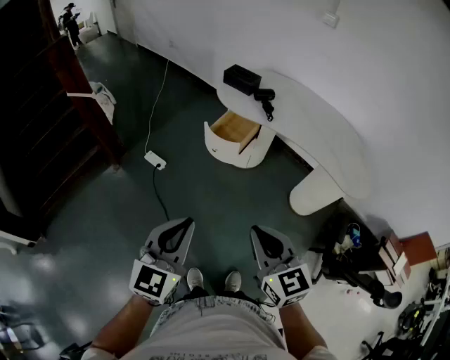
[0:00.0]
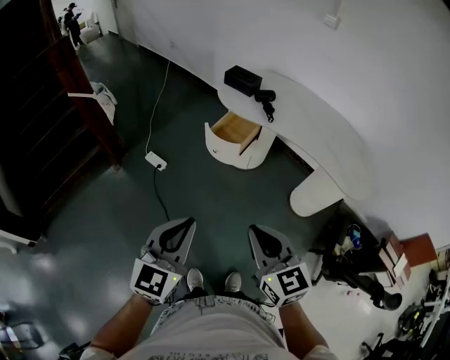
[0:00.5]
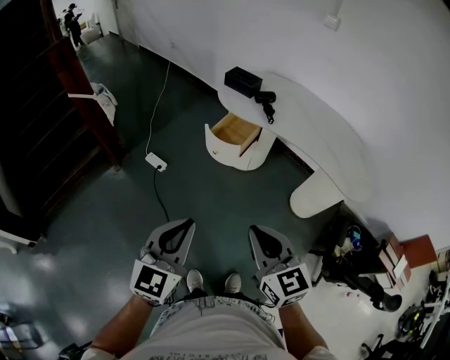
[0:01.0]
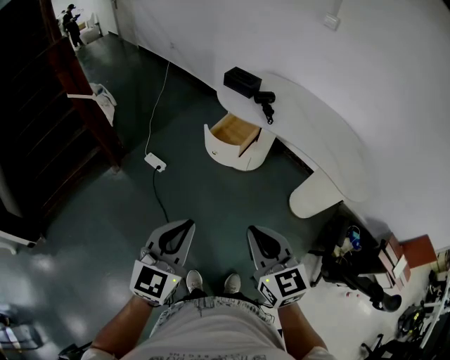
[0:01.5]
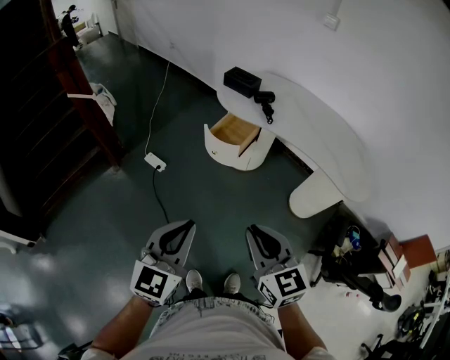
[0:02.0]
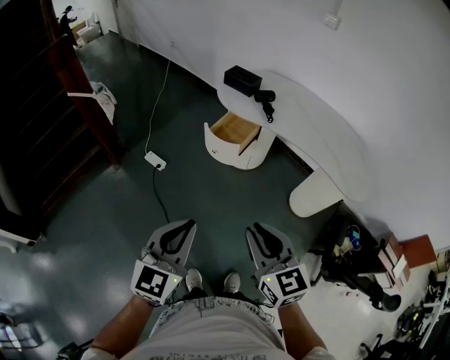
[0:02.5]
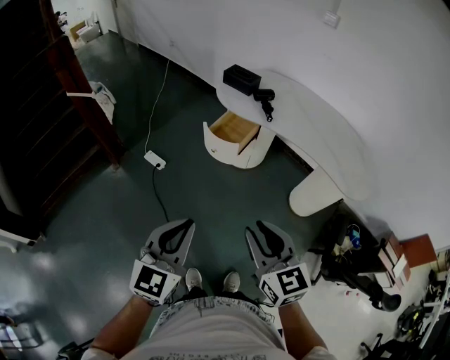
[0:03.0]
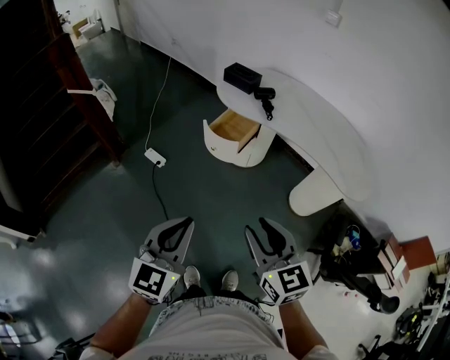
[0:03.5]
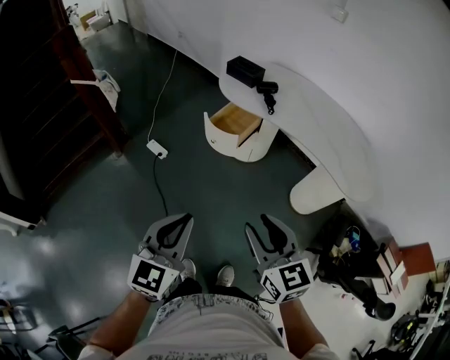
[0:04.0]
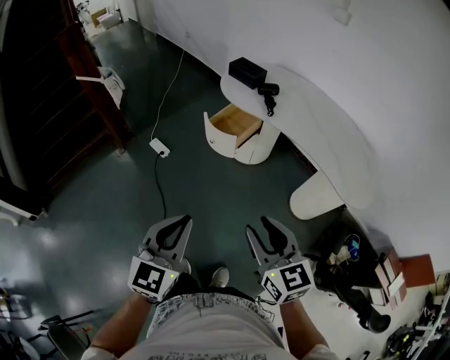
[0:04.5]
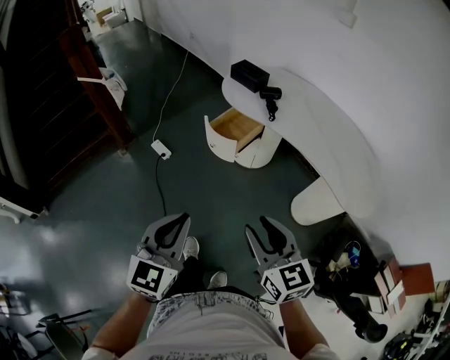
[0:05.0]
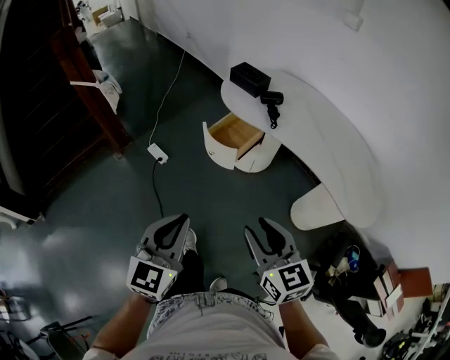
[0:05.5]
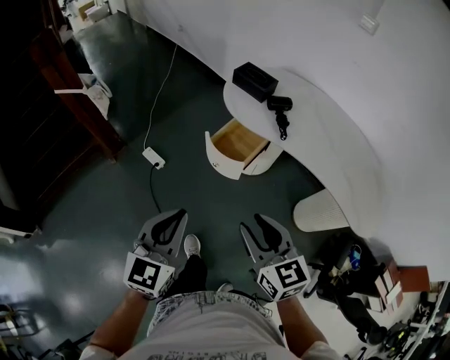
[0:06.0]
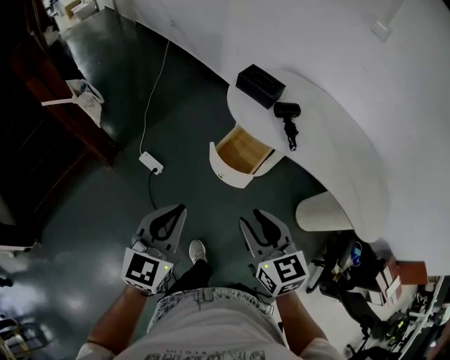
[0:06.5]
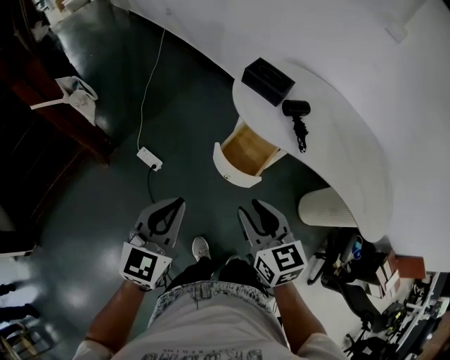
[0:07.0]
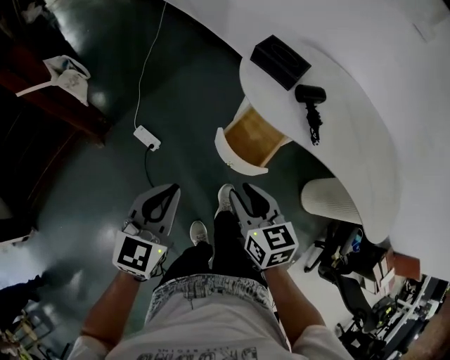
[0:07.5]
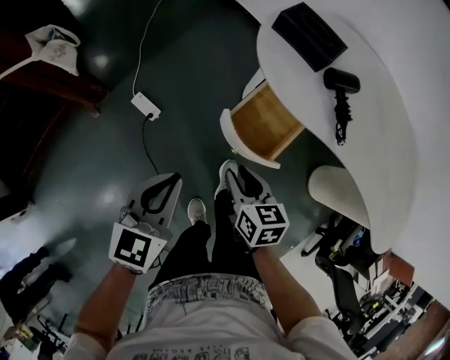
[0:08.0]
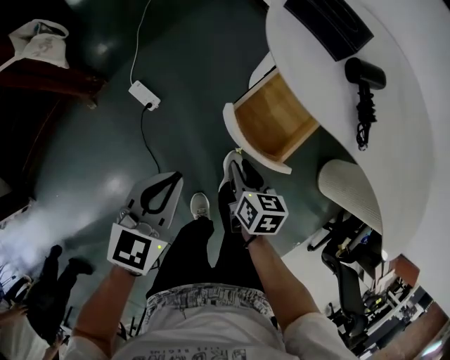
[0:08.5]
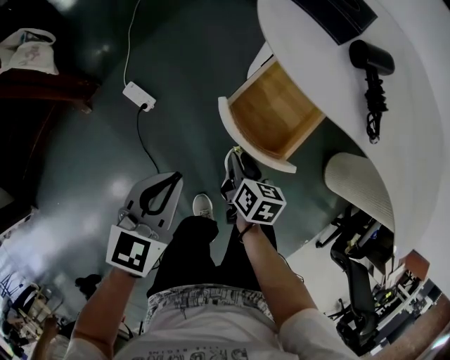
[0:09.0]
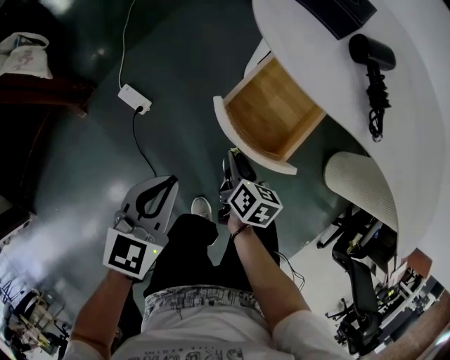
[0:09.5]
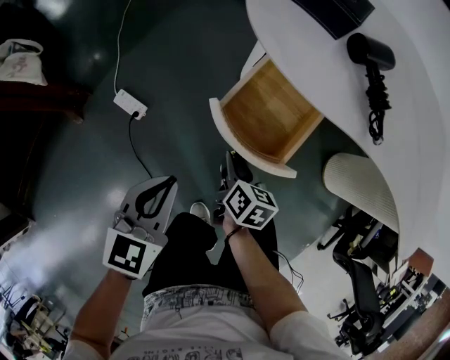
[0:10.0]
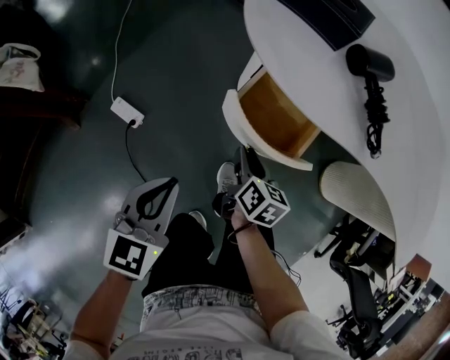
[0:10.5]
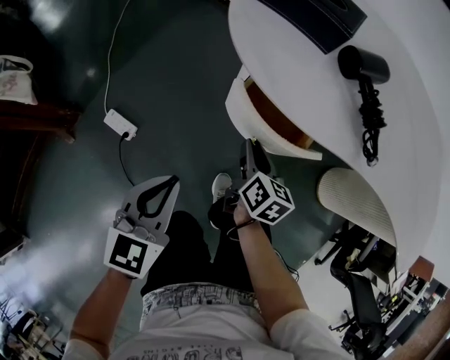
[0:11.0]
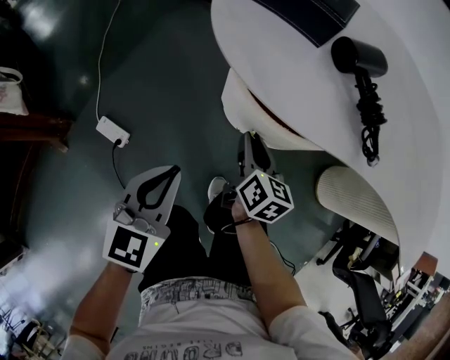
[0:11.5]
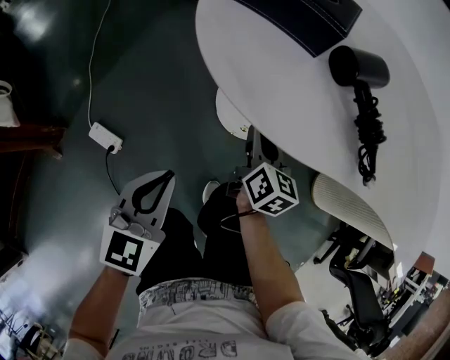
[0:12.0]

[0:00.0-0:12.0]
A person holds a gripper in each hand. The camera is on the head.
0:00.0 to 0:02.0: Both grippers stay about where they are.
0:02.0 to 0:04.0: The right gripper heads to the right, covering roughly 5 cm, and opens up.
0:04.0 to 0:06.0: The two grippers go approximately 20 cm forward.
0:06.0 to 0:08.0: The grippers both shift forward and downward by approximately 35 cm. The right gripper changes its angle by roughly 30 degrees.
0:08.0 to 0:10.0: Both grippers travel together downward, about 15 cm. The right gripper turns by approximately 30 degrees.
0:10.0 to 0:12.0: The right gripper shifts approximately 25 cm forward and to the right, and changes its angle by roughly 30 degrees; the left gripper moves forward and downward, about 15 cm.

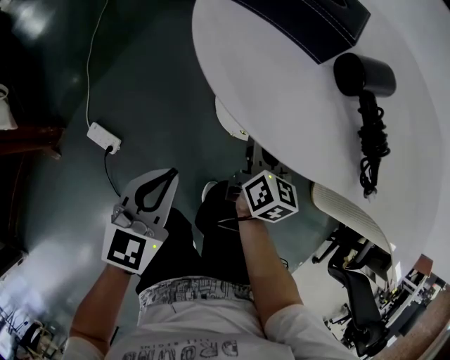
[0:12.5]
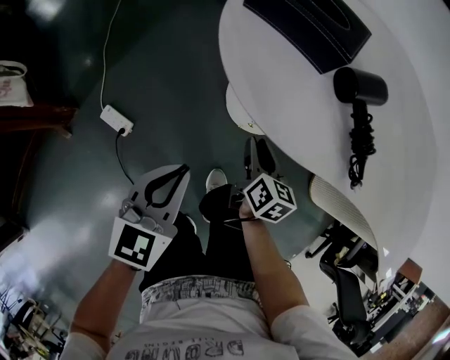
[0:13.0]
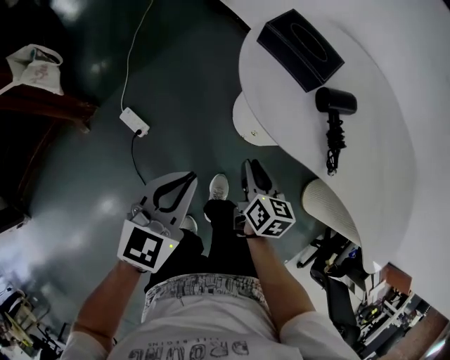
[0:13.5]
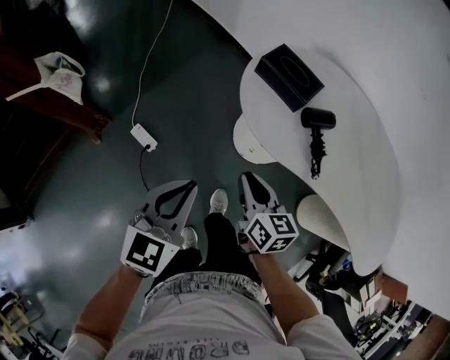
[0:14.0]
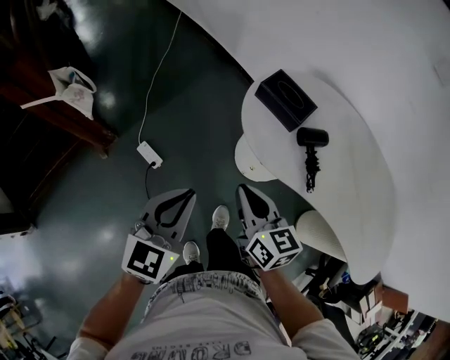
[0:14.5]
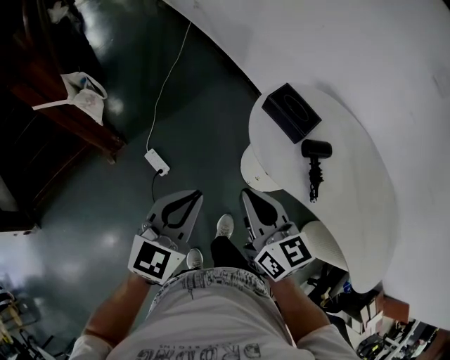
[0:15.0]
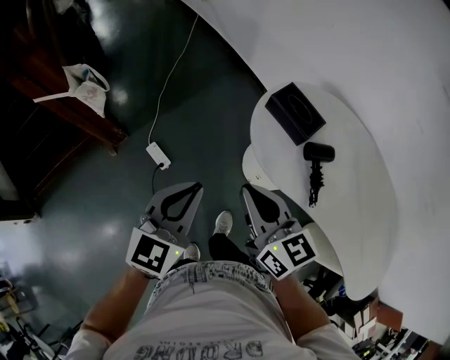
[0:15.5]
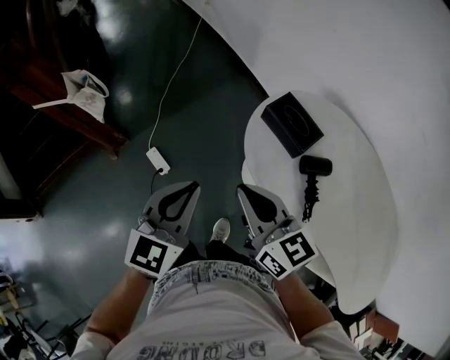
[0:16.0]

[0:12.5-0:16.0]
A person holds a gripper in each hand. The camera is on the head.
0:12.5 to 0:14.5: The left gripper heads upward, covering some 35 cm, while the right gripper travels upward and backward by about 40 cm, changes its angle by some 40 degrees, and closes its fingers.
0:14.5 to 0:16.0: The left gripper travels forward by approximately 10 cm, while the right gripper moves upward and forward, some 10 cm.

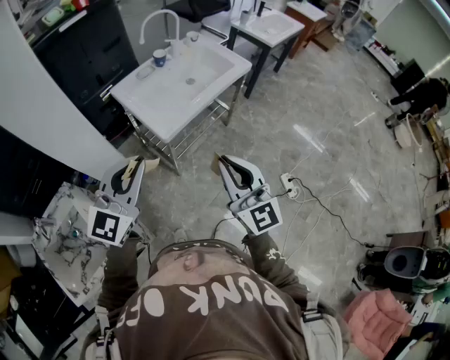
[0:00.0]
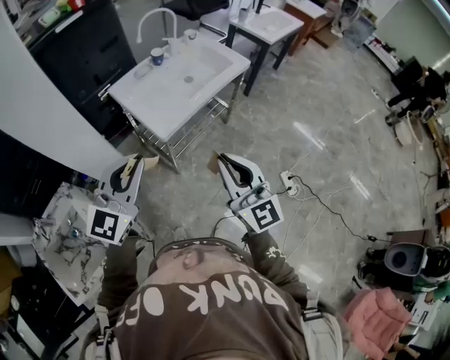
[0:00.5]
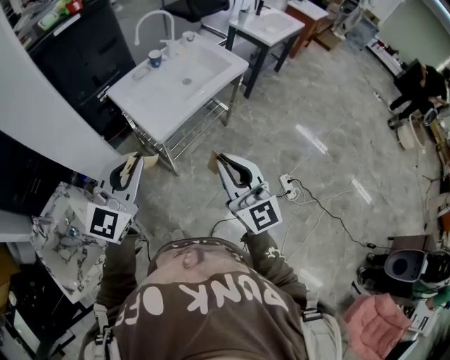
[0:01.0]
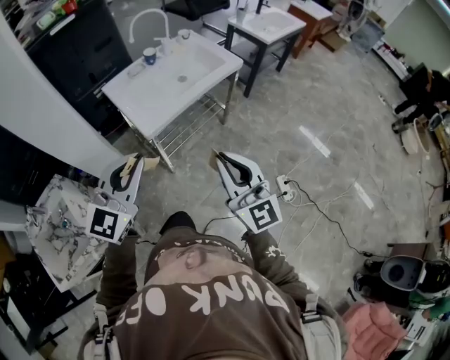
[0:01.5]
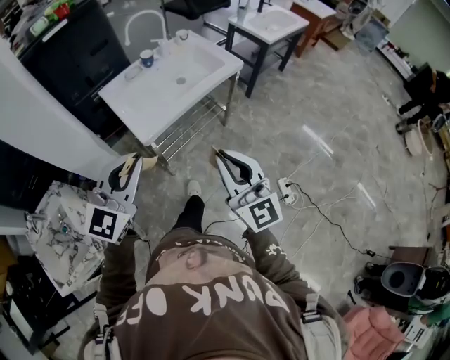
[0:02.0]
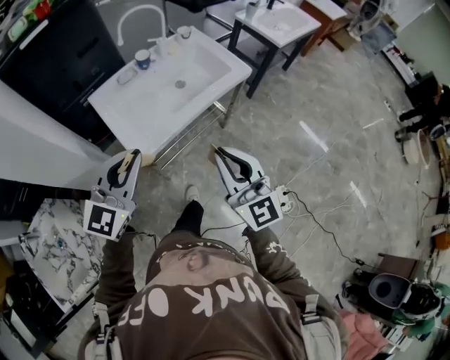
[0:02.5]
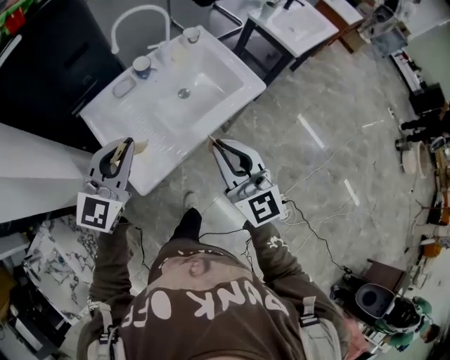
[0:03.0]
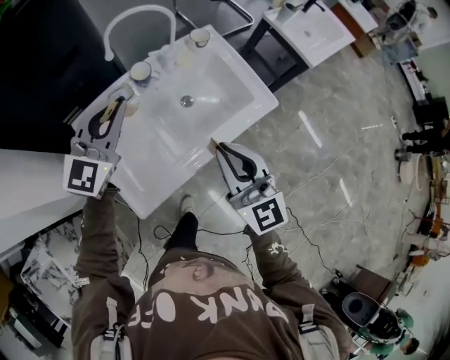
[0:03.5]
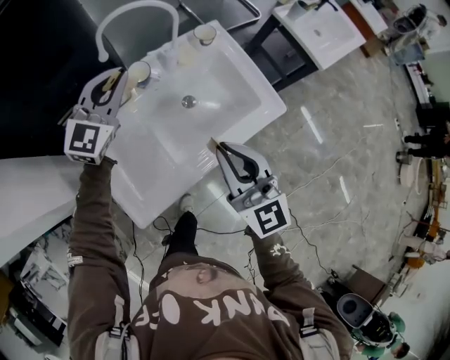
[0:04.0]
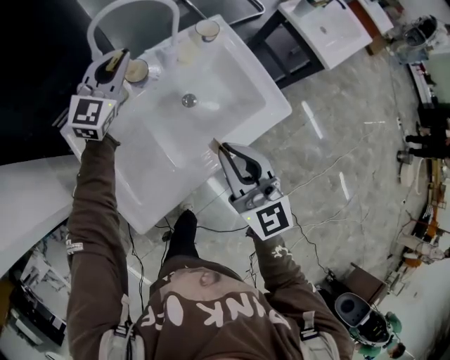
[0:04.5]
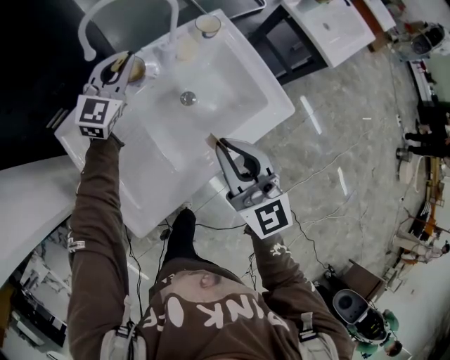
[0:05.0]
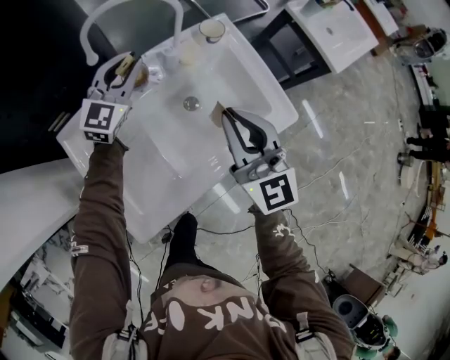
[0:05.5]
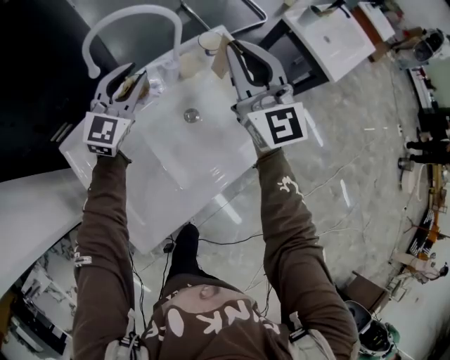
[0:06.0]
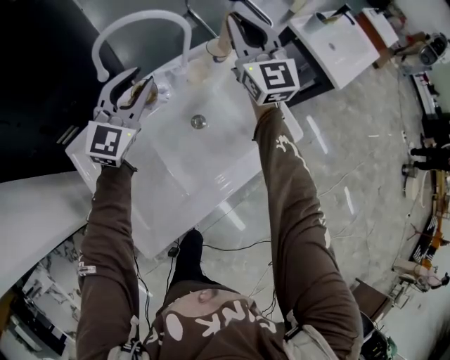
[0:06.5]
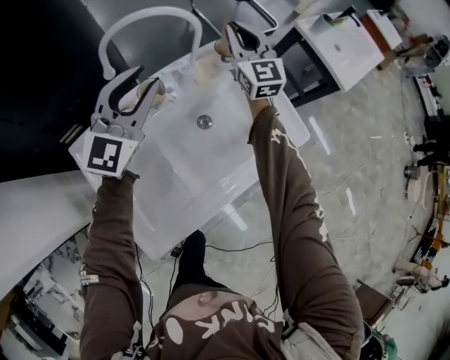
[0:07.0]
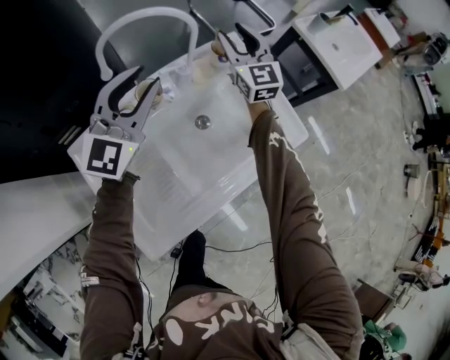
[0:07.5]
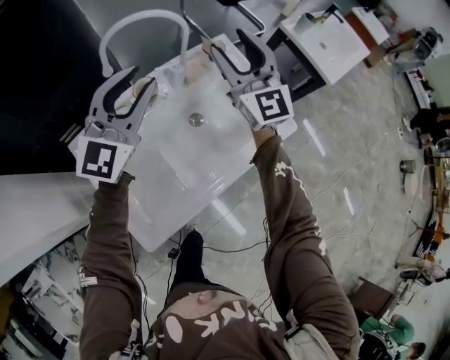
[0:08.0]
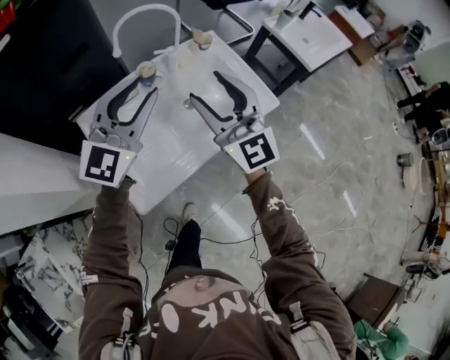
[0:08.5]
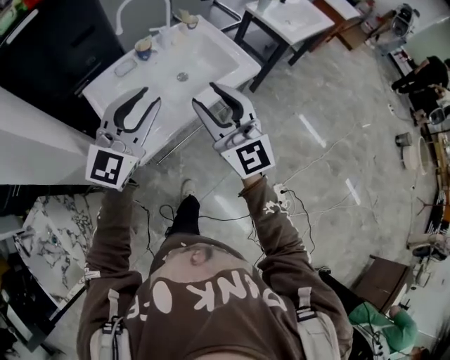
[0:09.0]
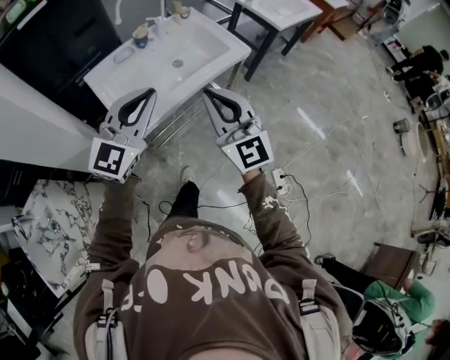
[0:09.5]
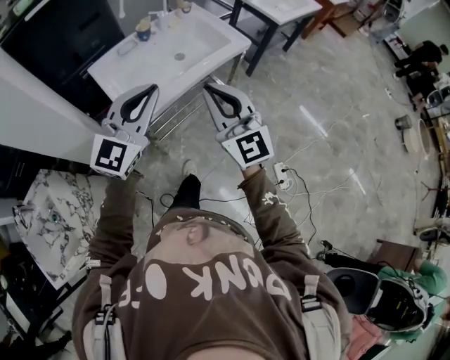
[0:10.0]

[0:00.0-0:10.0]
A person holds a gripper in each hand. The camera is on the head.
0:00.0 to 0:02.0: The two grippers go about 10 cm to the right.
0:02.0 to 0:04.0: The two grippers travel together, forward, about 50 cm.
0:04.0 to 0:06.0: The right gripper shifts approximately 25 cm forward. The left gripper heads forward and downward, covering roughly 10 cm, and opens its fingers.
0:06.0 to 0:08.0: The right gripper goes forward and returns, about 15 cm each way, and opens. Meanwhile the left gripper moves upward and backward, roughly 15 cm.
0:08.0 to 0:10.0: Both grippers are carried backward, some 50 cm. The left gripper closes up. Meanwhile the right gripper closes up.

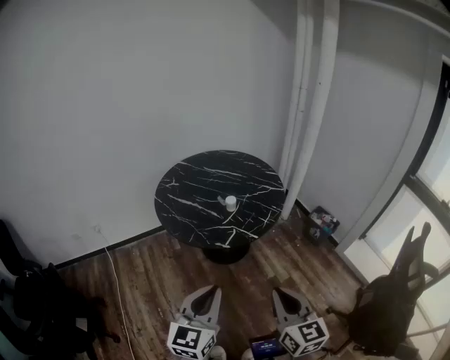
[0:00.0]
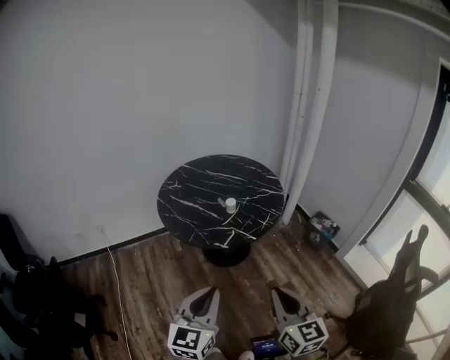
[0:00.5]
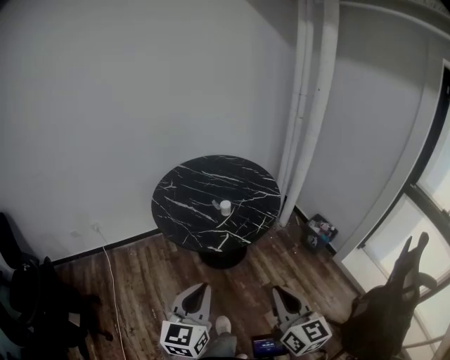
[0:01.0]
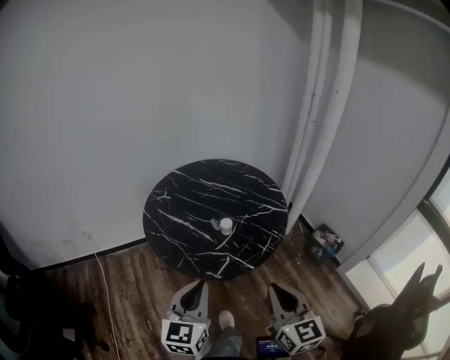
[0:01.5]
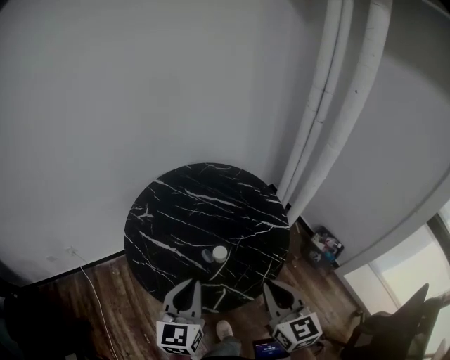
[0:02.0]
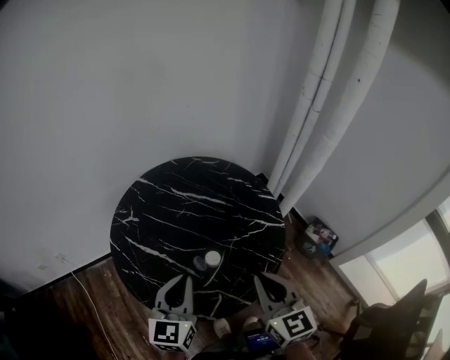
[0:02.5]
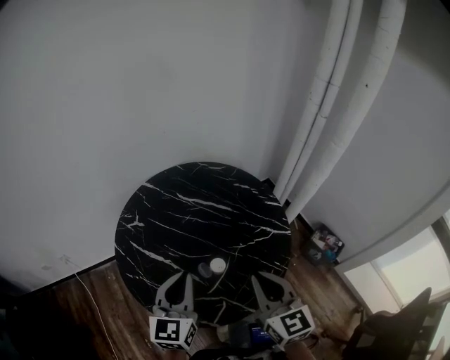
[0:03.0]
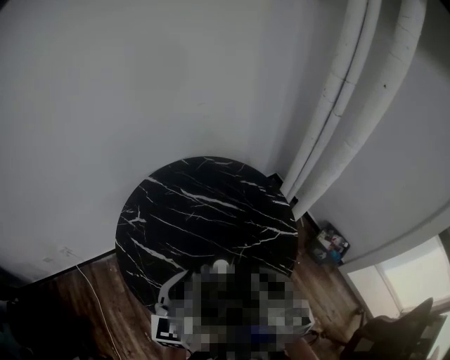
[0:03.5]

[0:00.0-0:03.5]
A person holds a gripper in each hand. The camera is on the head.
0:00.0 to 0:02.0: The grippers both shift forward by about 35 cm.
0:02.0 to 0:03.5: Both grippers travel together forward, some 15 cm.
